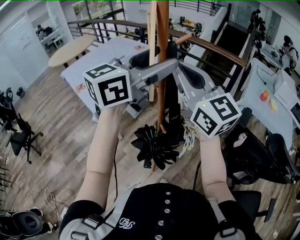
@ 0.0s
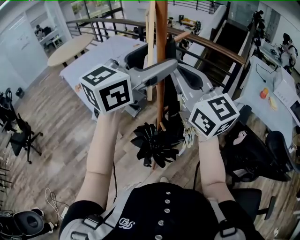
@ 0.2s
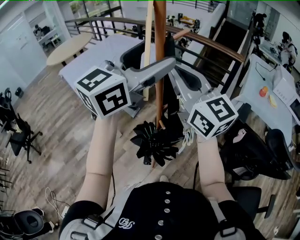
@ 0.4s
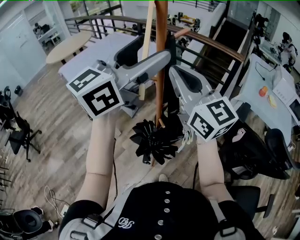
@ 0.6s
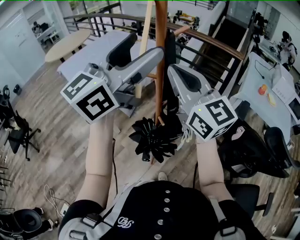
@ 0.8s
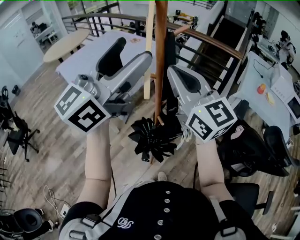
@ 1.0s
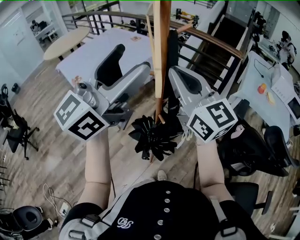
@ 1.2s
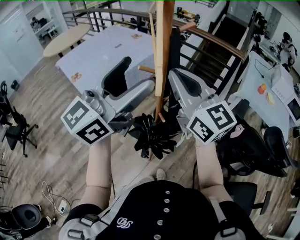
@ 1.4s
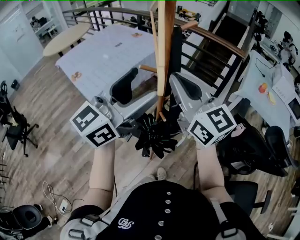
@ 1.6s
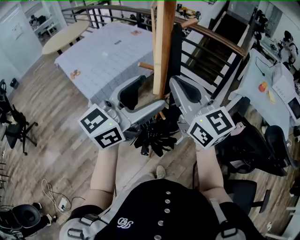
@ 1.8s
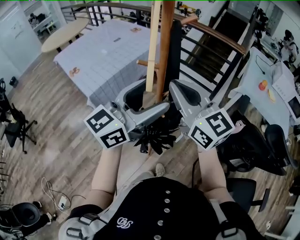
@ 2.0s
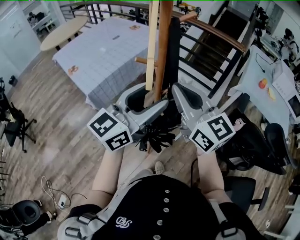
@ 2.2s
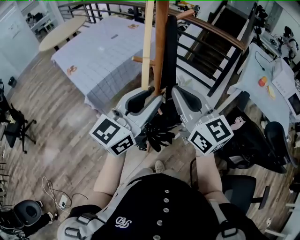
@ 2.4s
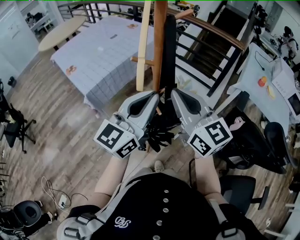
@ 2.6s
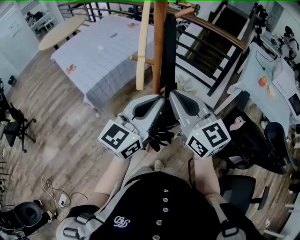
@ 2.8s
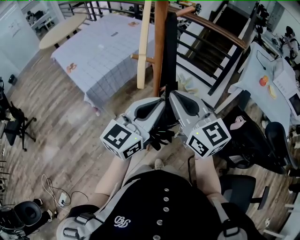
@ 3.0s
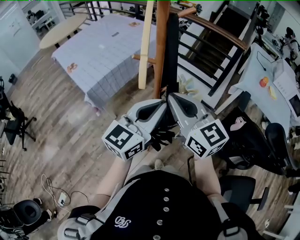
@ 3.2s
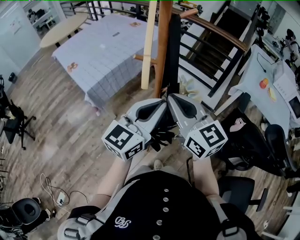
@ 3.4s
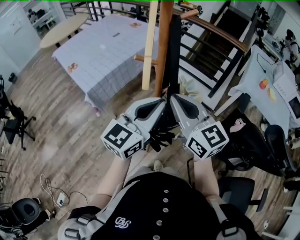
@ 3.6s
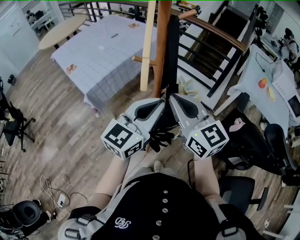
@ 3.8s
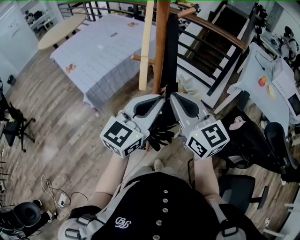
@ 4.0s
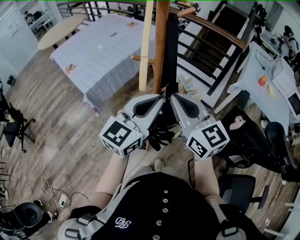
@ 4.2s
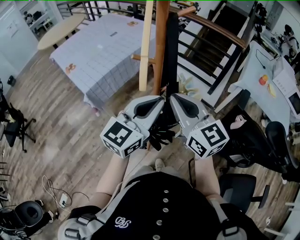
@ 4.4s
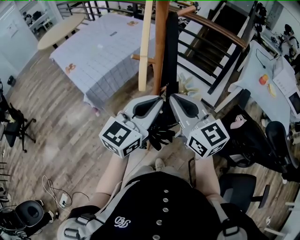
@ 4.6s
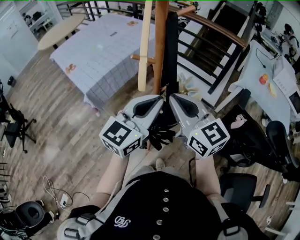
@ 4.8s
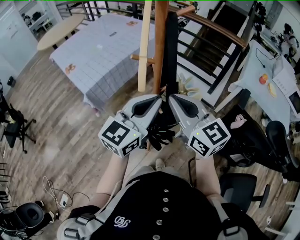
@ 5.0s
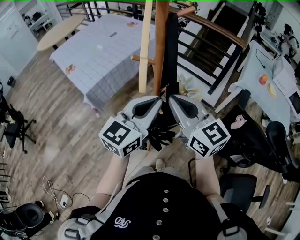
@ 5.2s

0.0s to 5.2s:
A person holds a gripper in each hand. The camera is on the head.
0.0s to 1.8s: The right gripper travels downward by approximately 5 cm. Meanwhile the left gripper heads downward and backward, covering some 15 cm.
1.8s to 3.4s: Both grippers travel together downward, roughly 10 cm. The left gripper closes.
3.4s to 5.2s: The grippers make only small movements.

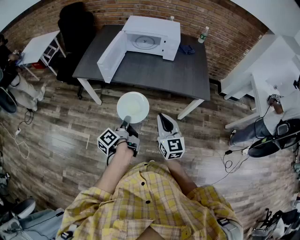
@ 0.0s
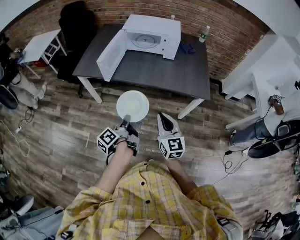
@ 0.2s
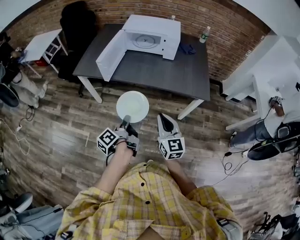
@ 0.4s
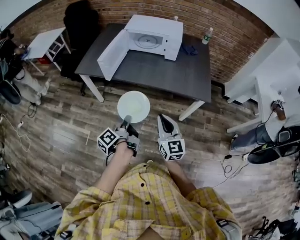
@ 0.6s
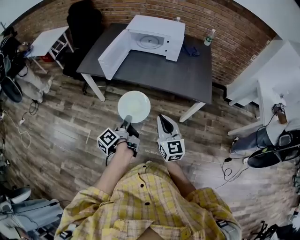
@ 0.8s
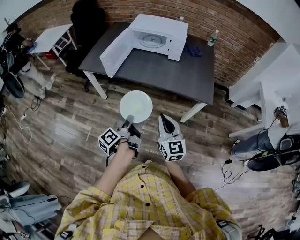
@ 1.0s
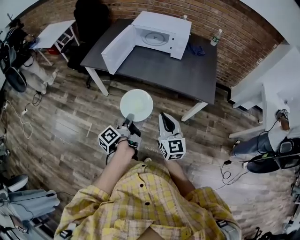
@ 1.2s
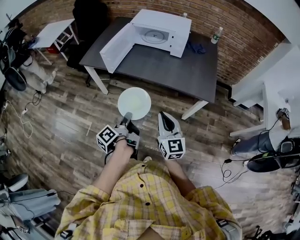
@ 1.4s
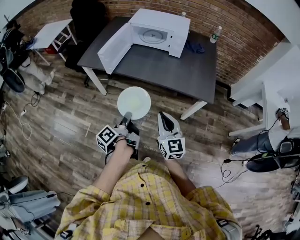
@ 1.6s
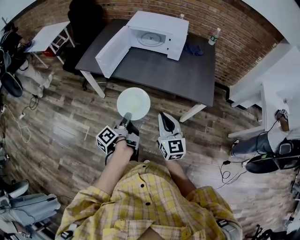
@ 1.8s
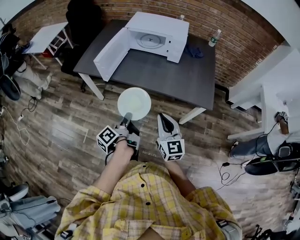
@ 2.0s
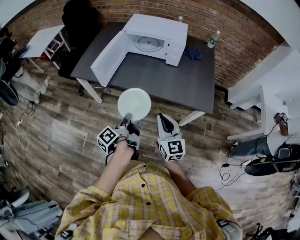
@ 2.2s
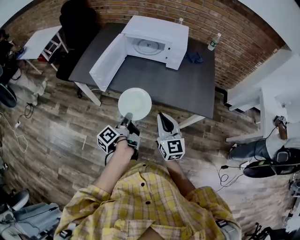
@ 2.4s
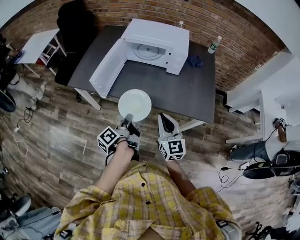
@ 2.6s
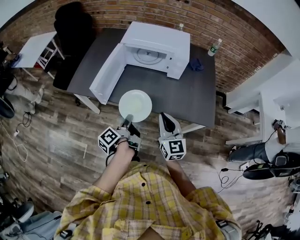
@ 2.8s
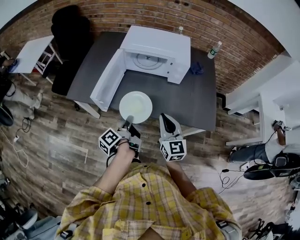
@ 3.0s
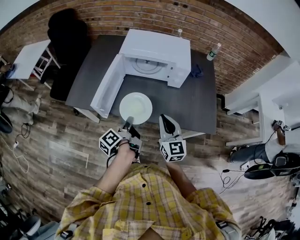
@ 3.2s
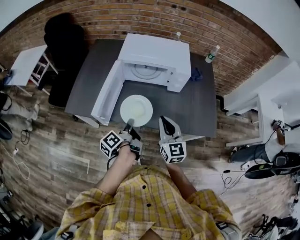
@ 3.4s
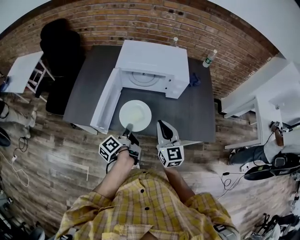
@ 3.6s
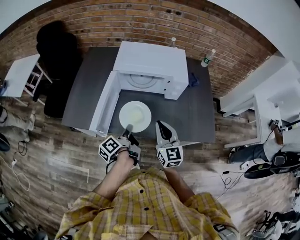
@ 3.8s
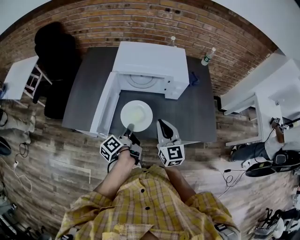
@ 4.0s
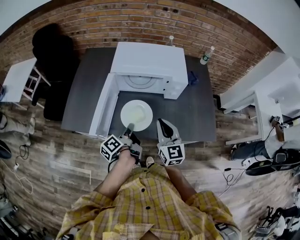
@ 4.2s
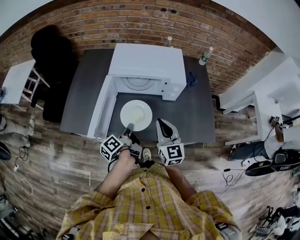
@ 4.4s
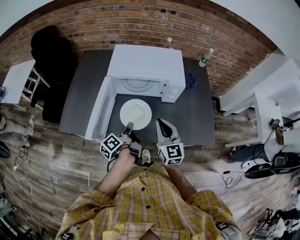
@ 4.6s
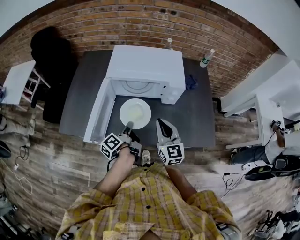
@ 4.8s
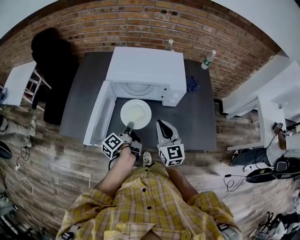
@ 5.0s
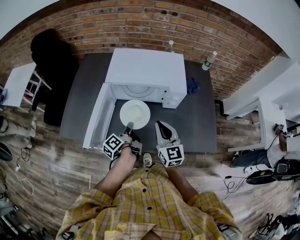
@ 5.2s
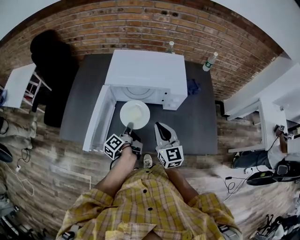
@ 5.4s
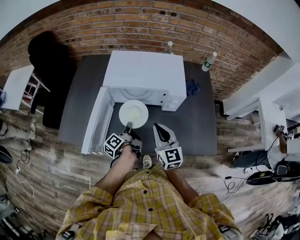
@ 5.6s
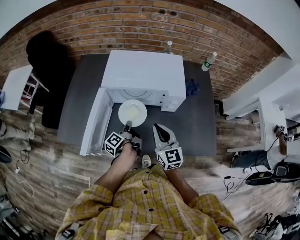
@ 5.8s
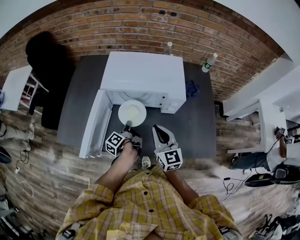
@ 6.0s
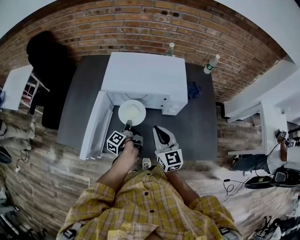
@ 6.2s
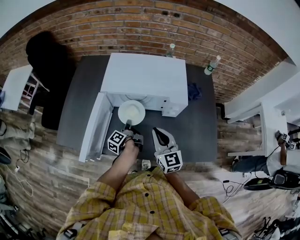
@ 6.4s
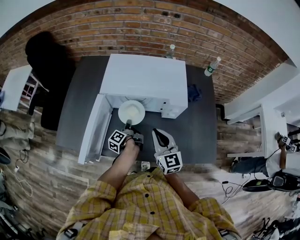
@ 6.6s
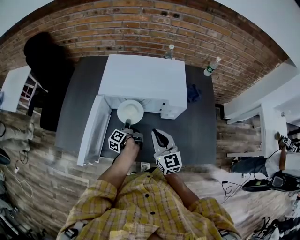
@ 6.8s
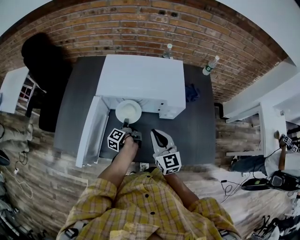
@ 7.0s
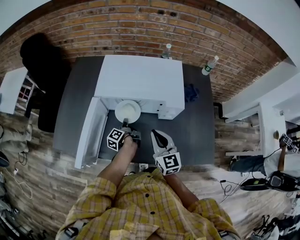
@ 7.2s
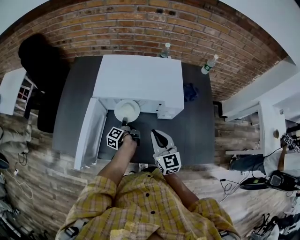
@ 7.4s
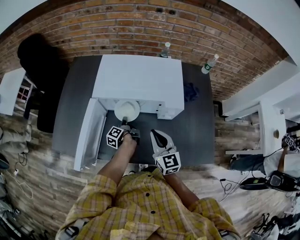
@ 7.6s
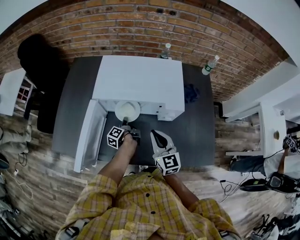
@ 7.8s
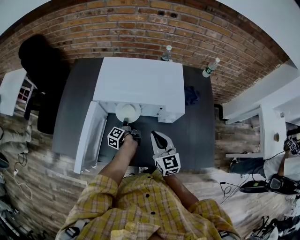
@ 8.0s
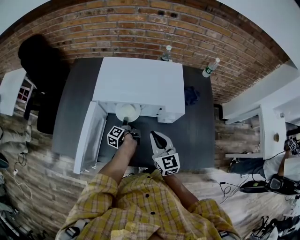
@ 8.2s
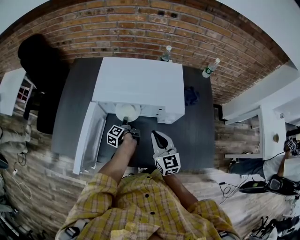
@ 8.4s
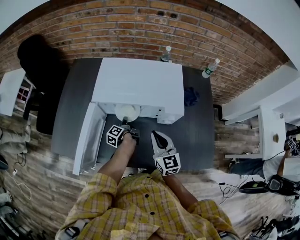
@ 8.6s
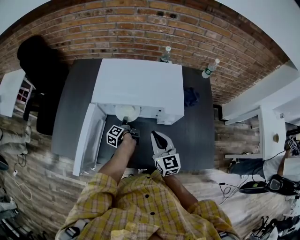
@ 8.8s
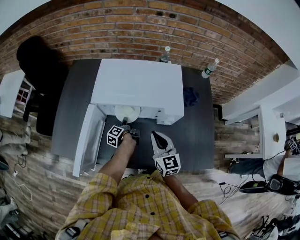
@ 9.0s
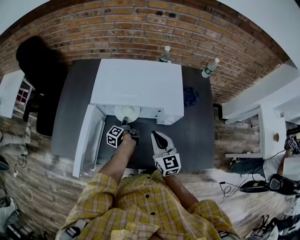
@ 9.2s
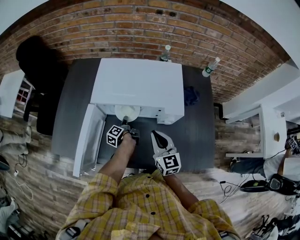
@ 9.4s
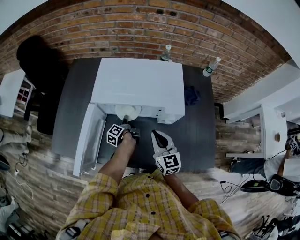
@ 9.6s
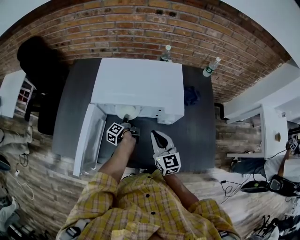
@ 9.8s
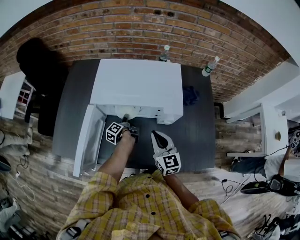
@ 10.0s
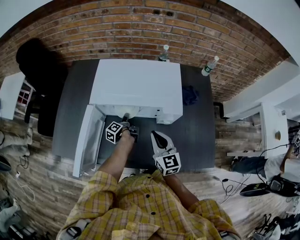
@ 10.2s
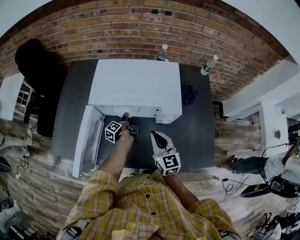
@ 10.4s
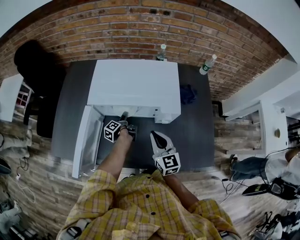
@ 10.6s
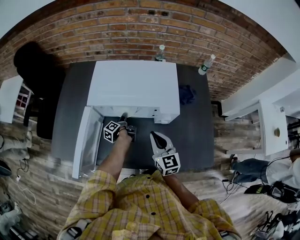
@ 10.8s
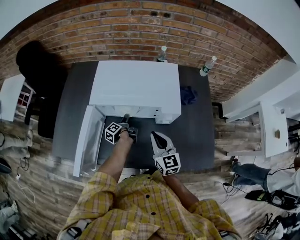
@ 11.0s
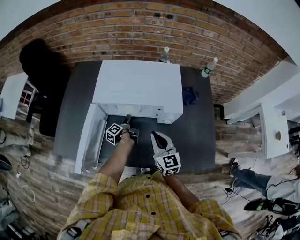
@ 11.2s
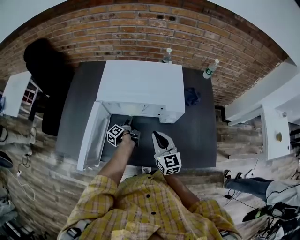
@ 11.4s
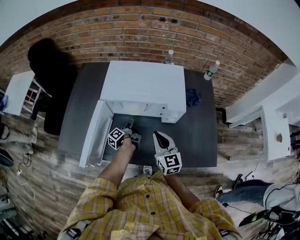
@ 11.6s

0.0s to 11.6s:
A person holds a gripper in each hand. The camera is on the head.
0.0s to 1.4s: The right gripper changes place by roughly 5 cm.
1.4s to 2.8s: The right gripper ends up about 25 cm from where it was.
2.8s to 4.4s: The right gripper changes place by roughly 15 cm.
4.4s to 5.8s: The right gripper ends up some 10 cm from where it was.
5.8s to 7.2s: The right gripper shifts by about 5 cm.

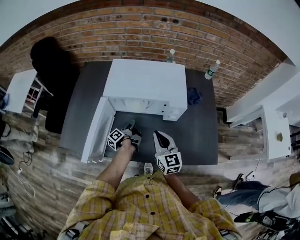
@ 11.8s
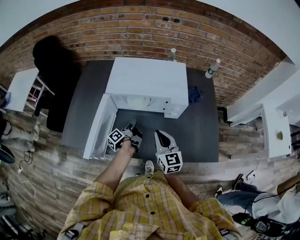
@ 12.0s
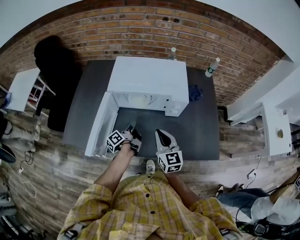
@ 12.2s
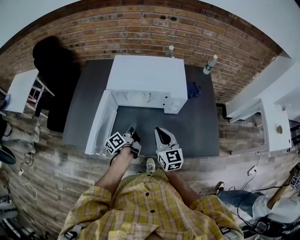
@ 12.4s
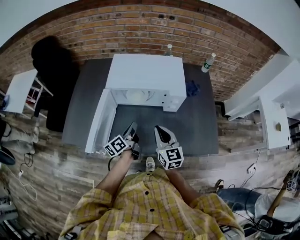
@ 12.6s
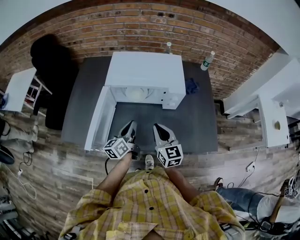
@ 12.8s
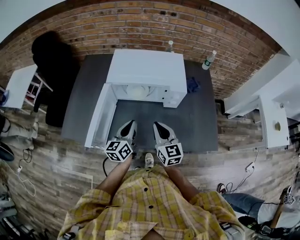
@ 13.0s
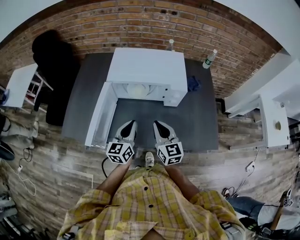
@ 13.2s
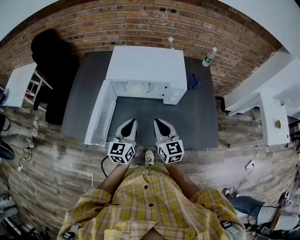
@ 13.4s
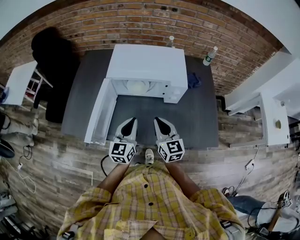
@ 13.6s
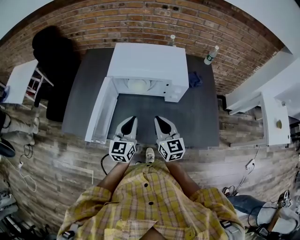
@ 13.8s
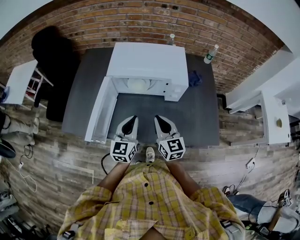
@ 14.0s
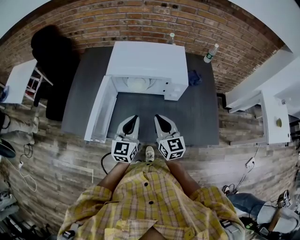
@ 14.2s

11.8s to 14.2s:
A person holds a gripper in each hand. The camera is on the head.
11.8s to 13.0s: The right gripper moves roughly 5 cm.

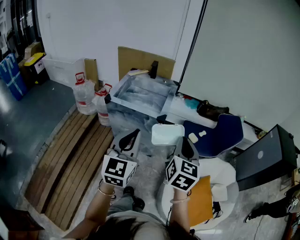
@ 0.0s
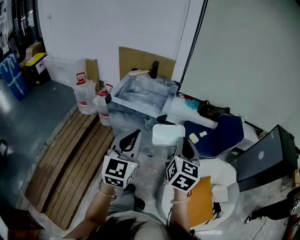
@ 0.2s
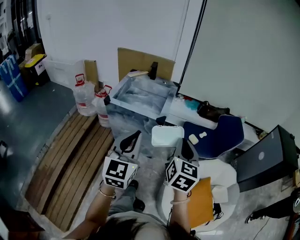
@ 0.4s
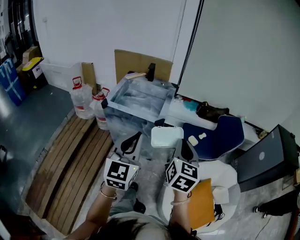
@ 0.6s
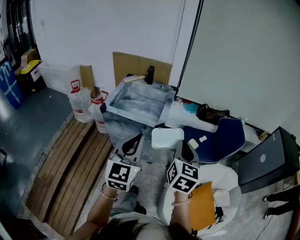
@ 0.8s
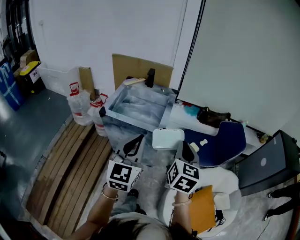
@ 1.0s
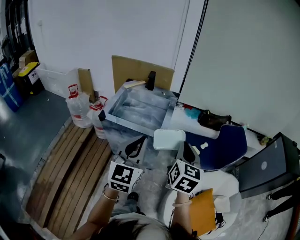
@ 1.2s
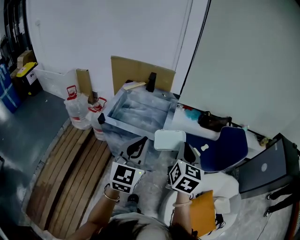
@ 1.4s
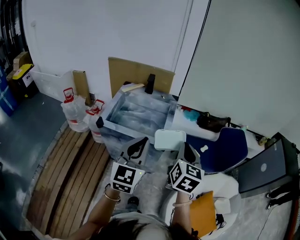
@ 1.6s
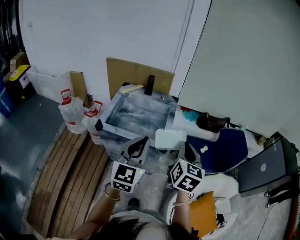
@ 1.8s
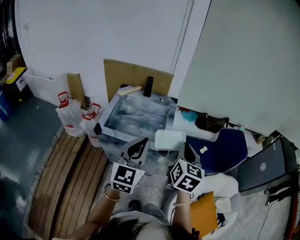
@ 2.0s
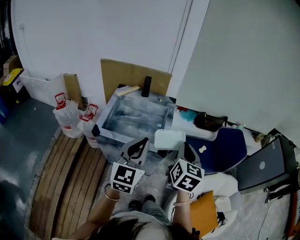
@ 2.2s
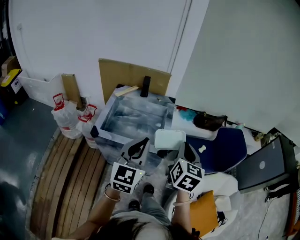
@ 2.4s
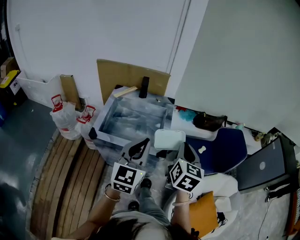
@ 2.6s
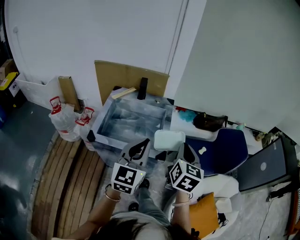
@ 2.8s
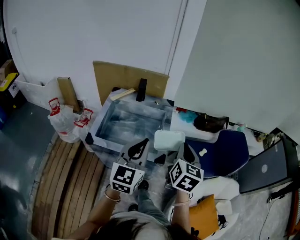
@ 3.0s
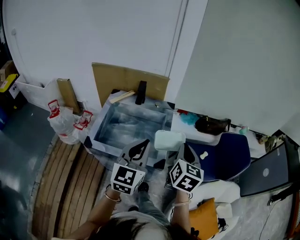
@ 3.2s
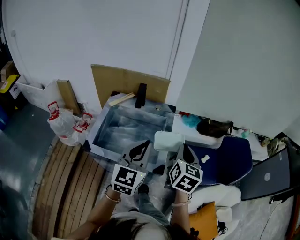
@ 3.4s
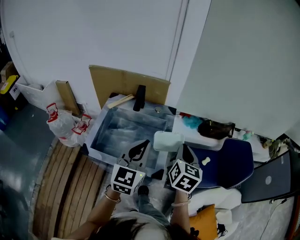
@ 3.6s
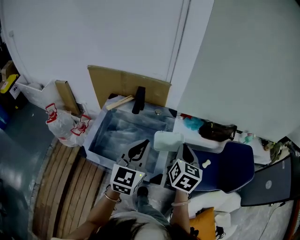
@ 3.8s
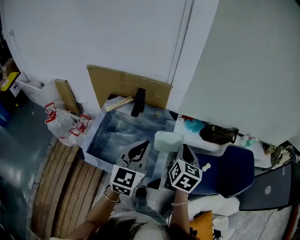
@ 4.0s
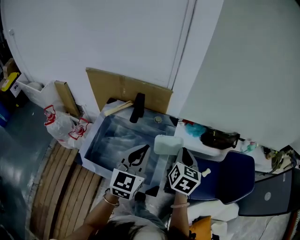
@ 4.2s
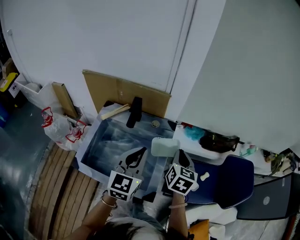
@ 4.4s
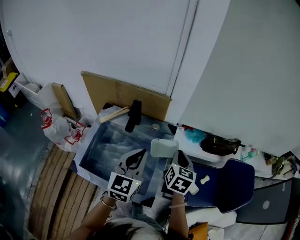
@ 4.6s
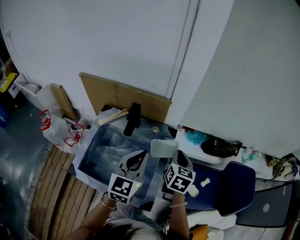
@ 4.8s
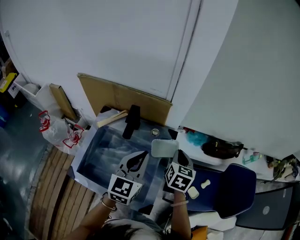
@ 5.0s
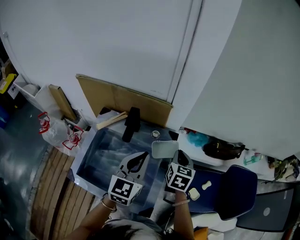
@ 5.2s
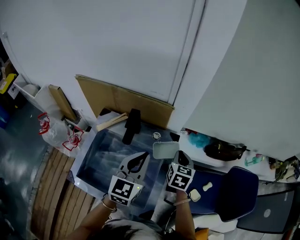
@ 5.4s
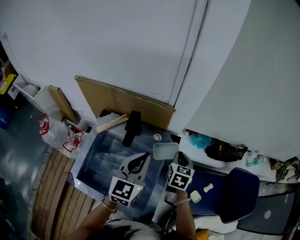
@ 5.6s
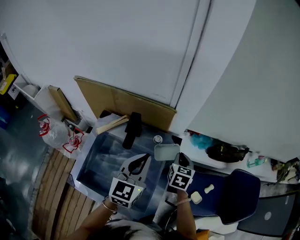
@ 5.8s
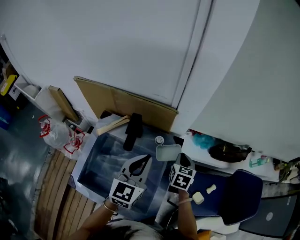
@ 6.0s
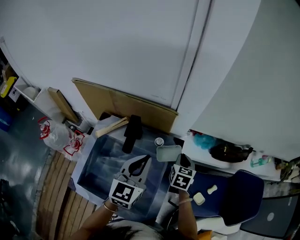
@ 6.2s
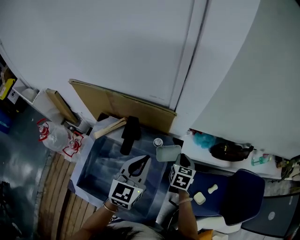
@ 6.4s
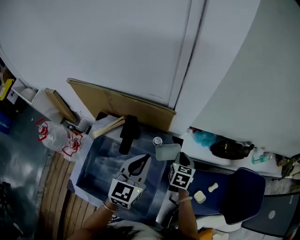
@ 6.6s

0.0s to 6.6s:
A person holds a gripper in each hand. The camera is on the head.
0.0s to 1.6s: The two grippers go roughly 20 cm forward.
1.6s to 3.2s: Both grippers move forward, about 15 cm.
3.2s to 5.0s: Both grippers travel together forward, roughly 25 cm.
5.0s to 6.6s: The right gripper heads downward and forward, covering roughly 15 cm, while the left gripper heads forward, covering some 10 cm.
